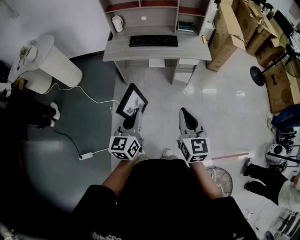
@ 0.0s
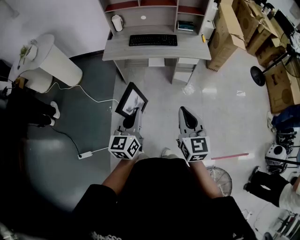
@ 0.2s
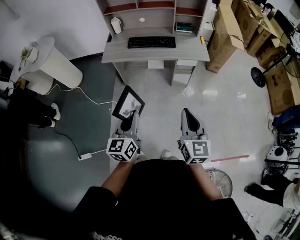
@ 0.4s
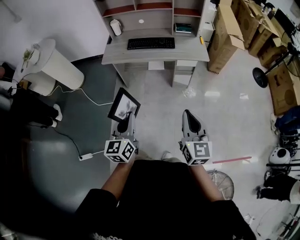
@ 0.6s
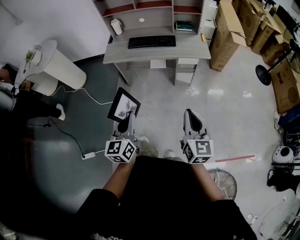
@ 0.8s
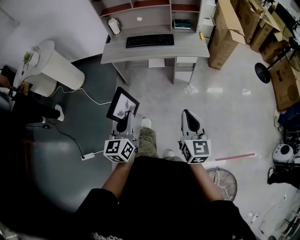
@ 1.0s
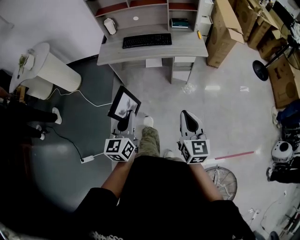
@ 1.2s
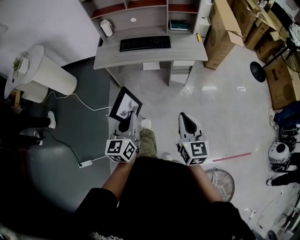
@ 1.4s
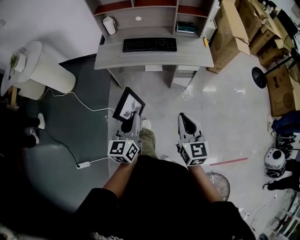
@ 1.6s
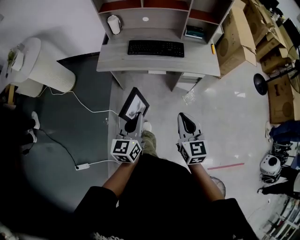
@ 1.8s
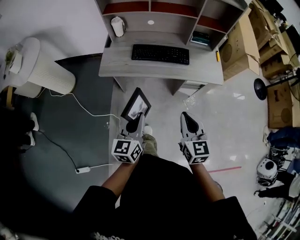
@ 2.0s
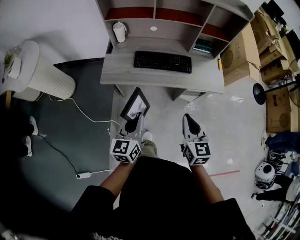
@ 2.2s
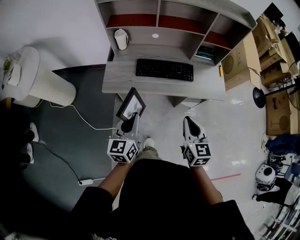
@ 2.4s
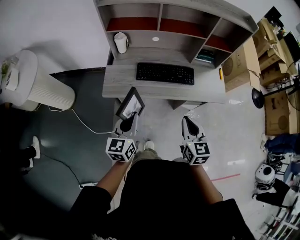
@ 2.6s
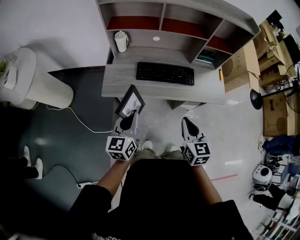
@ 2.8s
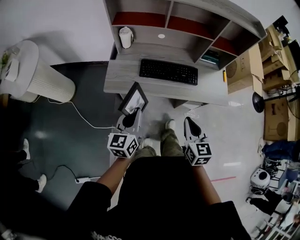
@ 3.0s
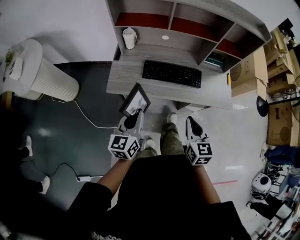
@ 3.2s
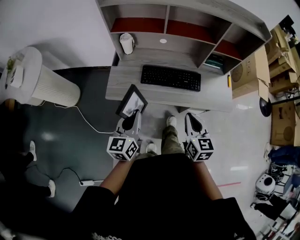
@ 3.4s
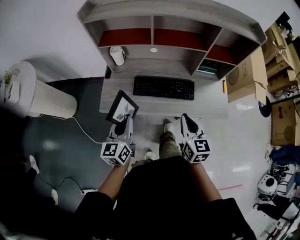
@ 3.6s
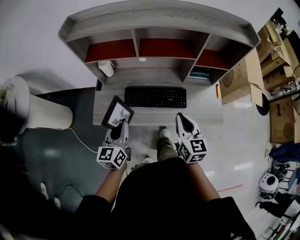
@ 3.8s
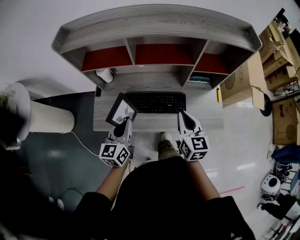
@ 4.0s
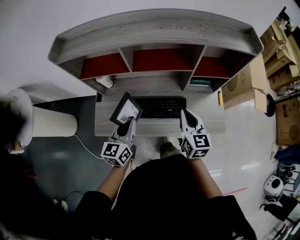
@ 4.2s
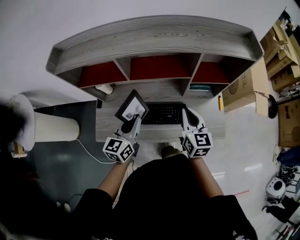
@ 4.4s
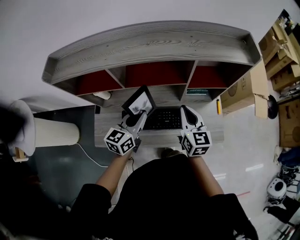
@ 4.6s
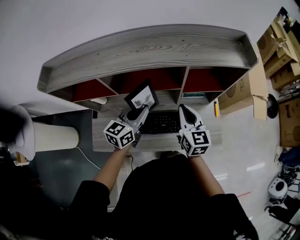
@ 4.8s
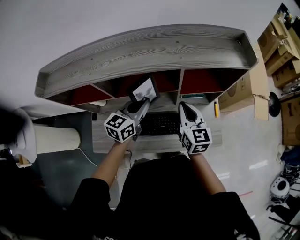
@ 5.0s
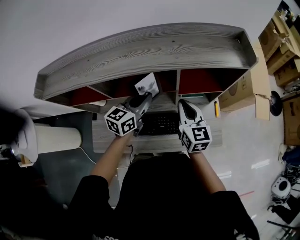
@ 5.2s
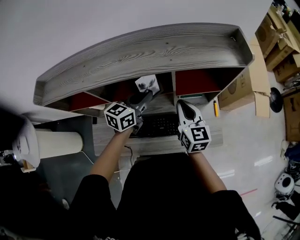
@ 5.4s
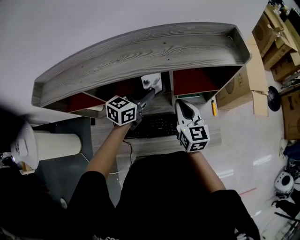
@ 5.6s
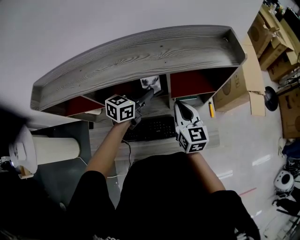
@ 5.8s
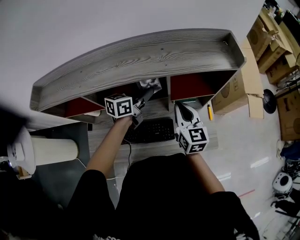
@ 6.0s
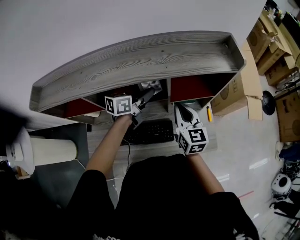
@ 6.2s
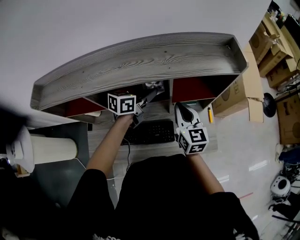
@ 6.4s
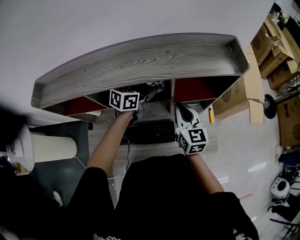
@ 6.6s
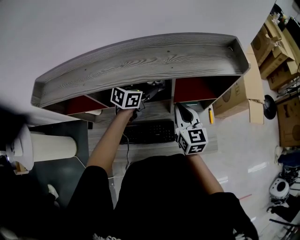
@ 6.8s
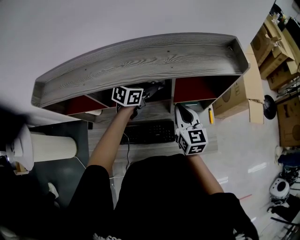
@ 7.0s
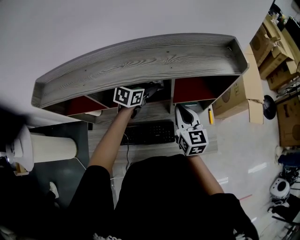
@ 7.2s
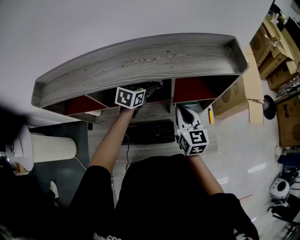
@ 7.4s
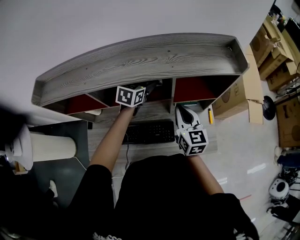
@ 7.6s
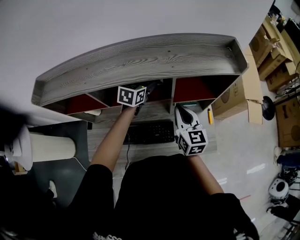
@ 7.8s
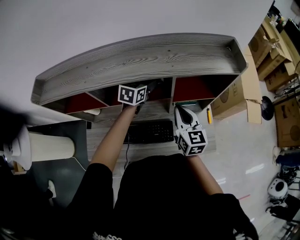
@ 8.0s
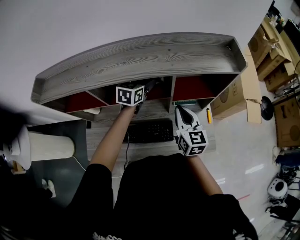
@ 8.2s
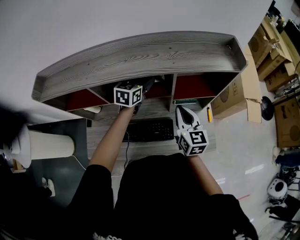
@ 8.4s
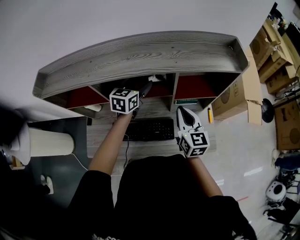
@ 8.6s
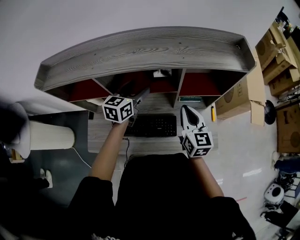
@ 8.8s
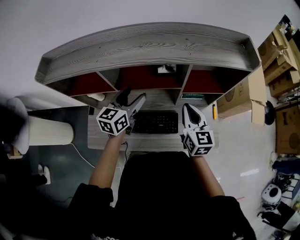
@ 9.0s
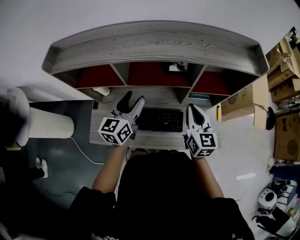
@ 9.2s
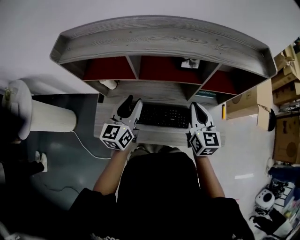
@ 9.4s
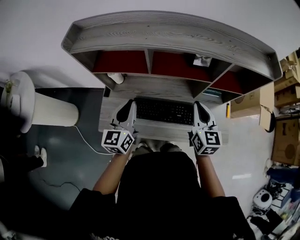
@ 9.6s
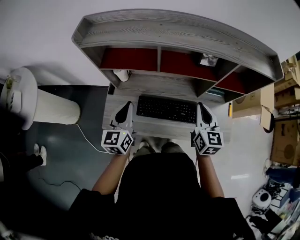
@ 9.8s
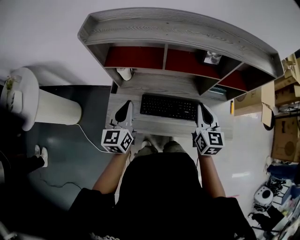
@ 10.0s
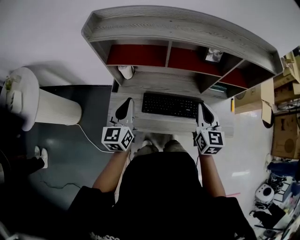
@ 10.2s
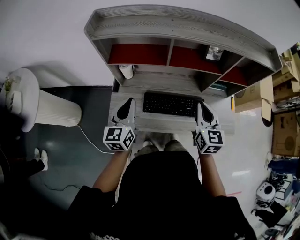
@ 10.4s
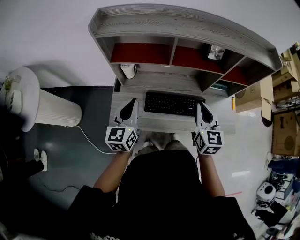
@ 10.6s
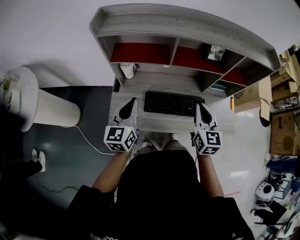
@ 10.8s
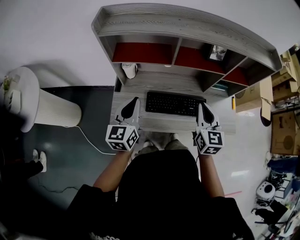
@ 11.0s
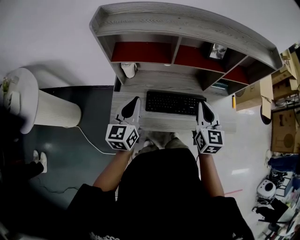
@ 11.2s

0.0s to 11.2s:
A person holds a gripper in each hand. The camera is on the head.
0.0s to 1.6s: The right gripper shifts some 15 cm forward and downward; the left gripper shifts roughly 15 cm forward.
1.6s to 3.2s: Both grippers move forward and to the left, approximately 35 cm.
3.2s to 4.8s: The two grippers travel together, forward and to the right, some 40 cm. The left gripper turns by roughly 30 degrees.
4.8s to 6.4s: The right gripper is displaced forward by about 5 cm. Meanwhile the left gripper shifts roughly 15 cm forward and to the right, and turns by some 20 degrees.
6.4s to 8.0s: The left gripper shifts approximately 5 cm forward, swivels approximately 30 degrees, and opens up.
8.0s to 9.6s: The right gripper goes roughly 15 cm to the left and backward, while the left gripper heads backward and to the left, covering roughly 40 cm, swivels some 40 degrees, and closes up.
9.6s to 11.2s: The left gripper shifts roughly 10 cm to the left; the right gripper heads to the left and backward, covering some 10 cm.

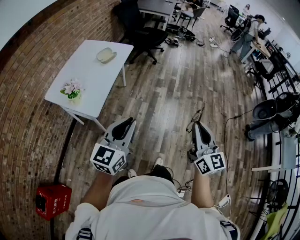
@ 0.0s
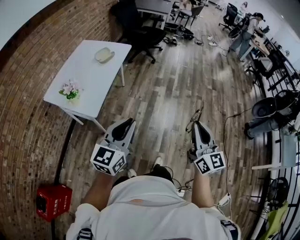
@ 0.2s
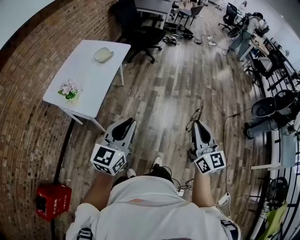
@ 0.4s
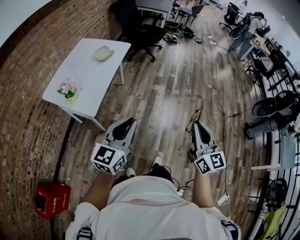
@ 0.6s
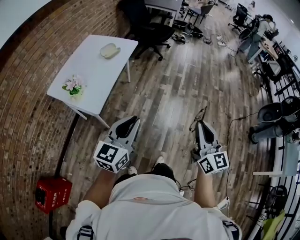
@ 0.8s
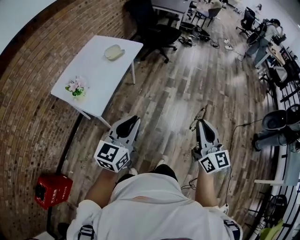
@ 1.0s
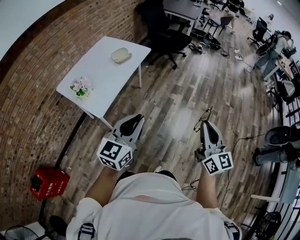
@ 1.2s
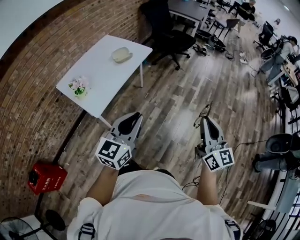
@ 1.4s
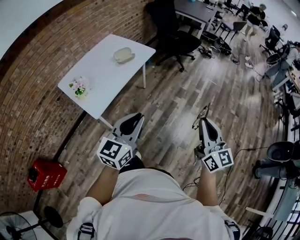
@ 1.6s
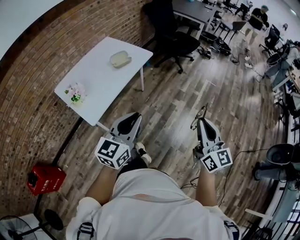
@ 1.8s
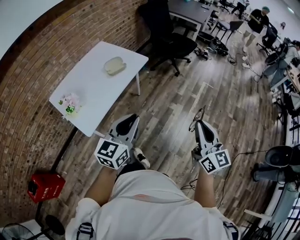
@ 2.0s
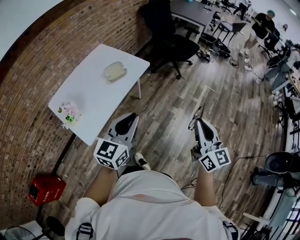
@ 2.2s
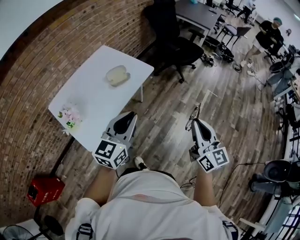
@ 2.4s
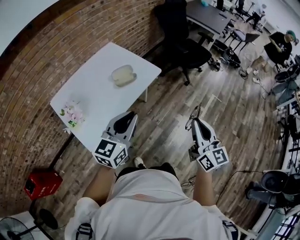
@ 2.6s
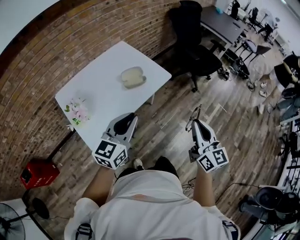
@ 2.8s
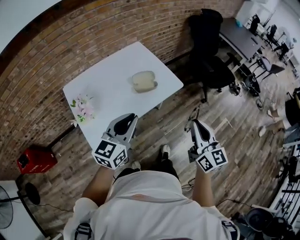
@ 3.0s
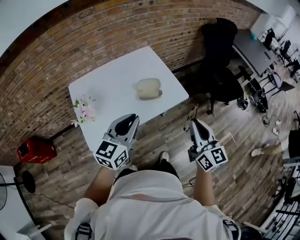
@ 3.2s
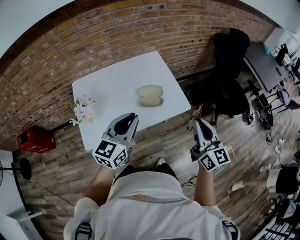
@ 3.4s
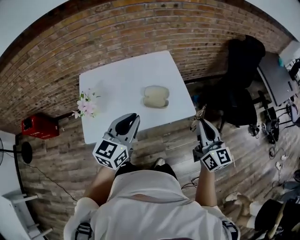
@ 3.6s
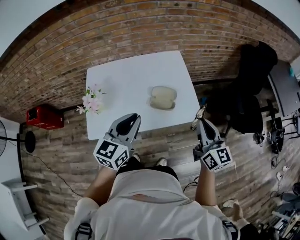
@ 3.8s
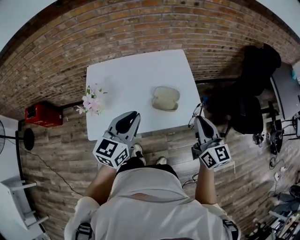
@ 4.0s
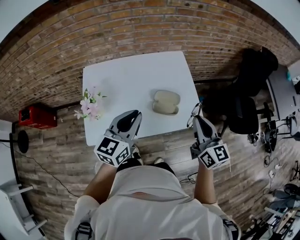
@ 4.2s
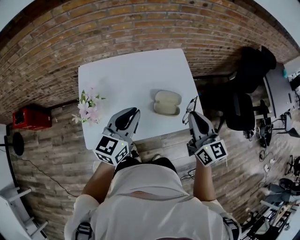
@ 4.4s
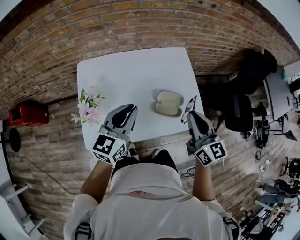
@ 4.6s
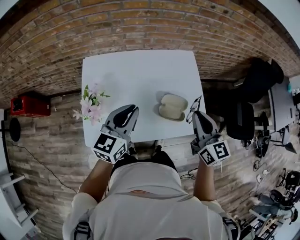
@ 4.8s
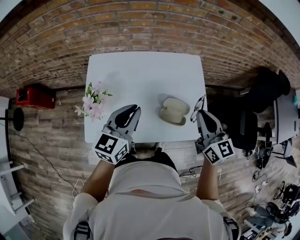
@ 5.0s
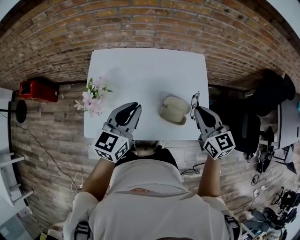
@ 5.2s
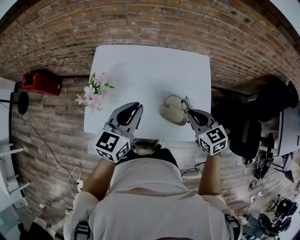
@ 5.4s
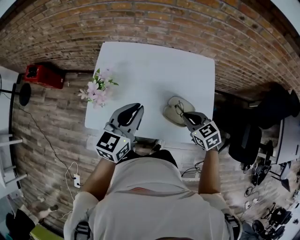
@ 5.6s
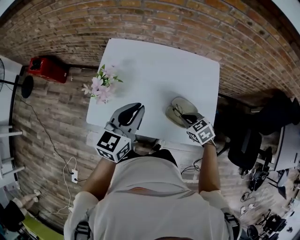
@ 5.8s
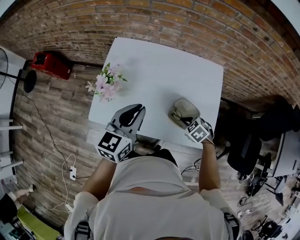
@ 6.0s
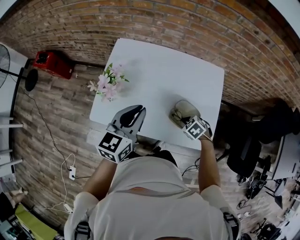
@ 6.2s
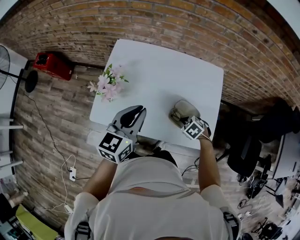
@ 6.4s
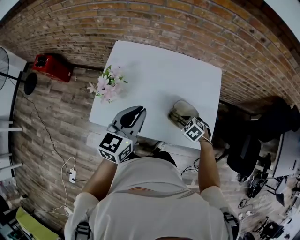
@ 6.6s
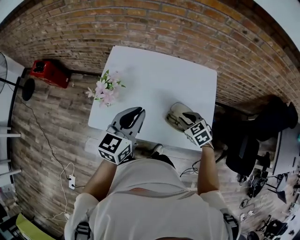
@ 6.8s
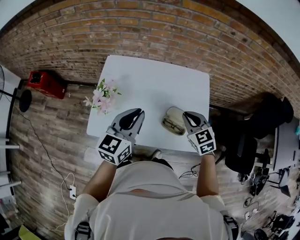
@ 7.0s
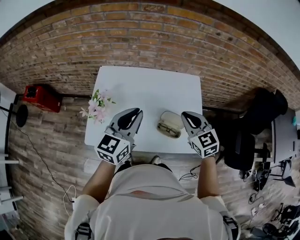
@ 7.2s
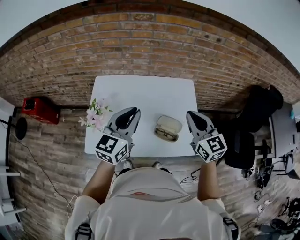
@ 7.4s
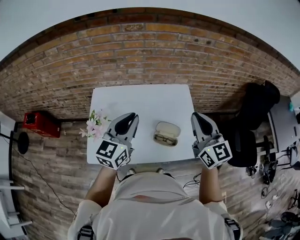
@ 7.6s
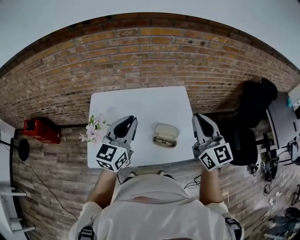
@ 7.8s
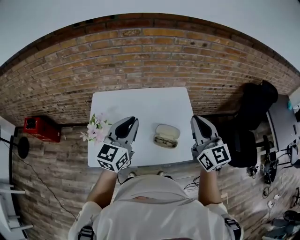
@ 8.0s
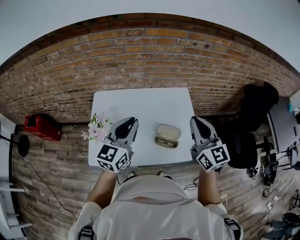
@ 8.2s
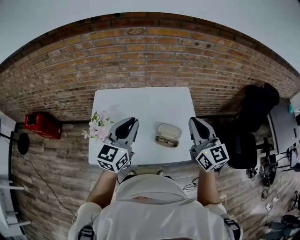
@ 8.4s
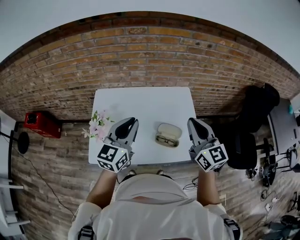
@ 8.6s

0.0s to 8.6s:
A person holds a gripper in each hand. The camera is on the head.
0.0s to 1.4s: The left gripper goes some 15 cm forward and to the right. Meanwhile the right gripper goes roughly 15 cm forward.
1.4s to 2.8s: The grippers both shift forward by some 35 cm.
2.8s to 4.4s: The left gripper shifts by about 25 cm, and turns by some 30 degrees, while the right gripper ends up approximately 40 cm from where it was, and turns by about 40 degrees.
4.4s to 5.8s: The right gripper is displaced downward by about 25 cm, and angles its fingers downward, by some 50 degrees. Meanwhile the left gripper turns by roughly 20 degrees.
5.8s to 7.2s: The right gripper heads upward, covering approximately 20 cm, tilts its fingers some 30 degrees upward, and opens and closes again, while the left gripper heads upward, covering about 5 cm.
7.2s to 8.6s: The right gripper shifts some 10 cm upward, and changes its angle by some 30 degrees.

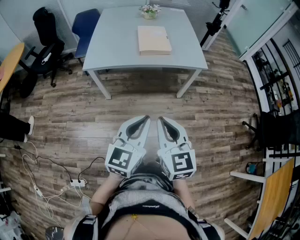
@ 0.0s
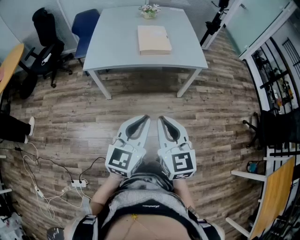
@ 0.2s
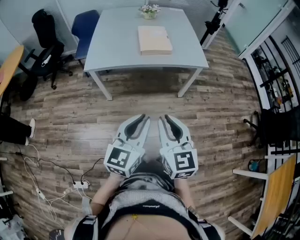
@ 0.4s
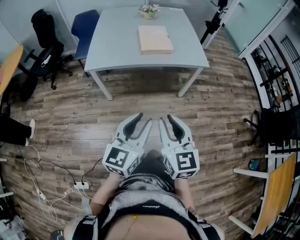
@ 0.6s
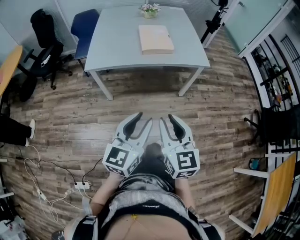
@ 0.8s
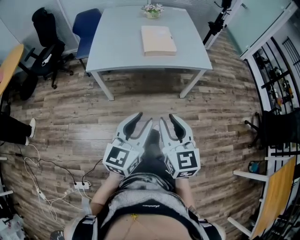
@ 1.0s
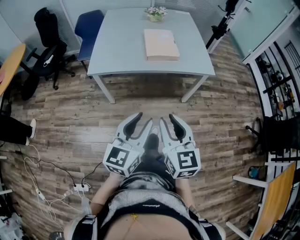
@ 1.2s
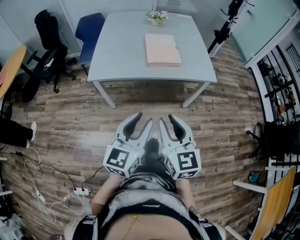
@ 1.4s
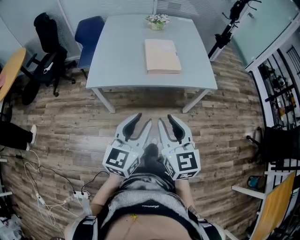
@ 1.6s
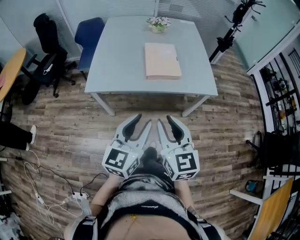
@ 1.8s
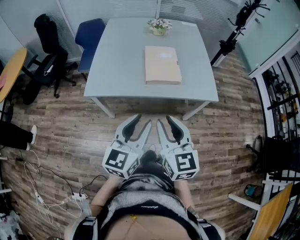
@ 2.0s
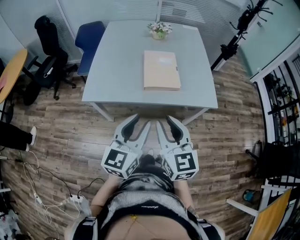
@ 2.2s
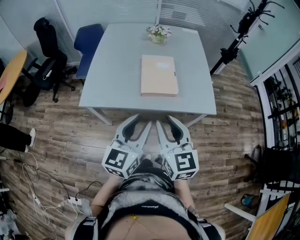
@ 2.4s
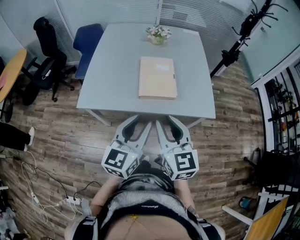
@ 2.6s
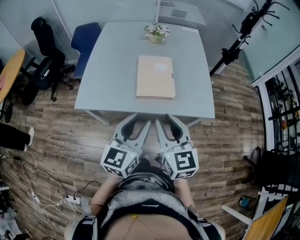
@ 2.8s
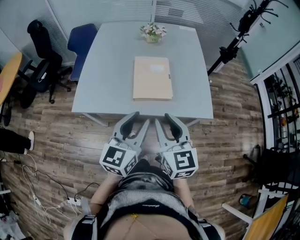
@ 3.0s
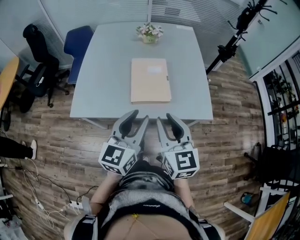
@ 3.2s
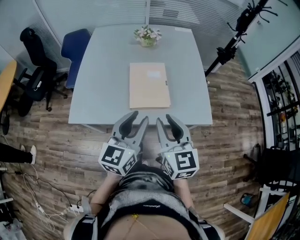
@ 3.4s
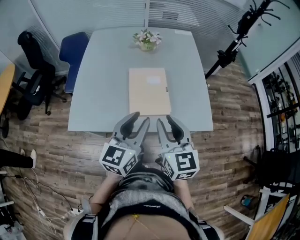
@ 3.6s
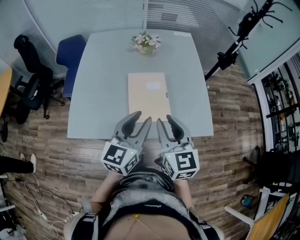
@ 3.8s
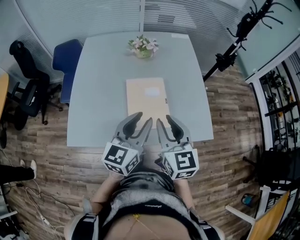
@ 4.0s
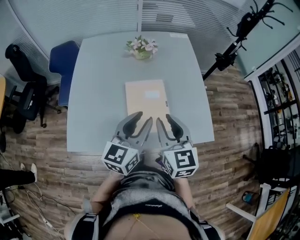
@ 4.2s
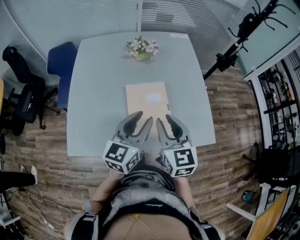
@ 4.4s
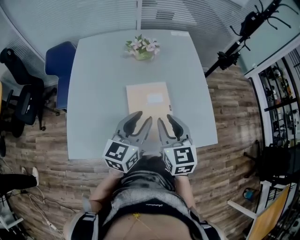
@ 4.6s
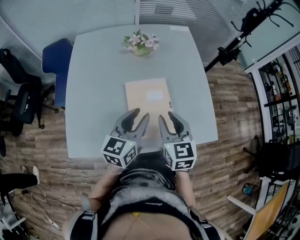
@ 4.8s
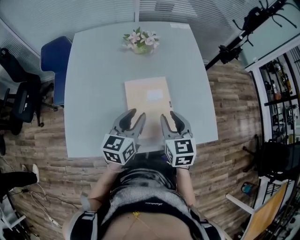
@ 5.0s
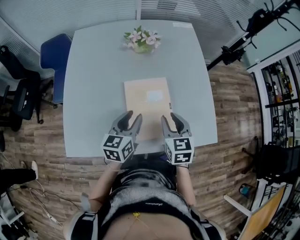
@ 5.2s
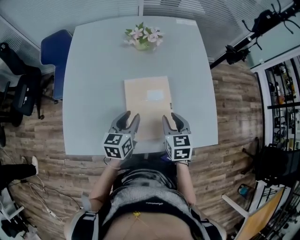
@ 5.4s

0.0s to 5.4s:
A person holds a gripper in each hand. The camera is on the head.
0.0s to 1.4s: The left gripper shifts some 10 cm forward and to the left, and opens up. Meanwhile the right gripper travels forward by about 10 cm, and opens up.
1.4s to 2.8s: Both grippers travel together forward, approximately 25 cm.
2.8s to 4.0s: The grippers both shift forward by about 20 cm.
4.0s to 5.4s: The right gripper goes roughly 20 cm downward and forward, and changes its angle by roughly 30 degrees. Meanwhile the left gripper is displaced downward, forward and to the left by about 25 cm, and rotates roughly 30 degrees.
